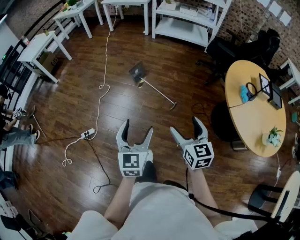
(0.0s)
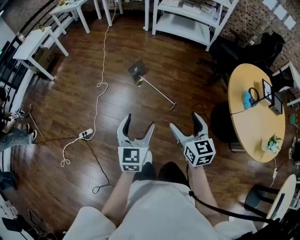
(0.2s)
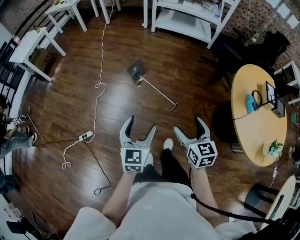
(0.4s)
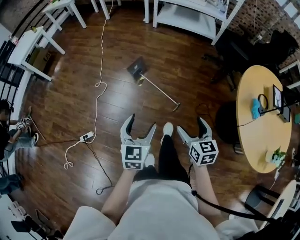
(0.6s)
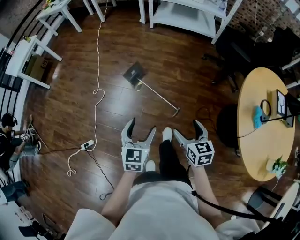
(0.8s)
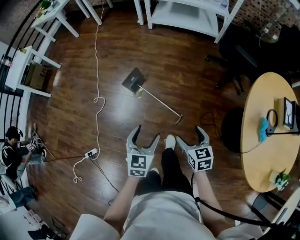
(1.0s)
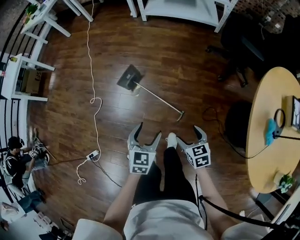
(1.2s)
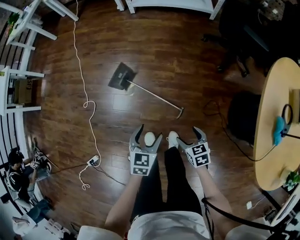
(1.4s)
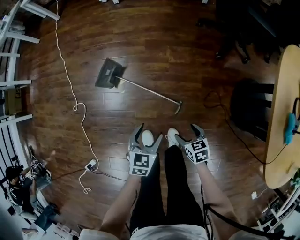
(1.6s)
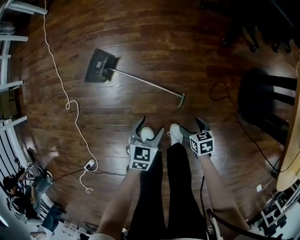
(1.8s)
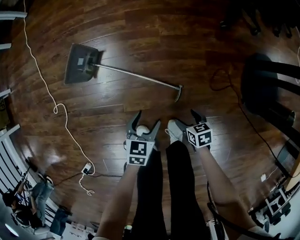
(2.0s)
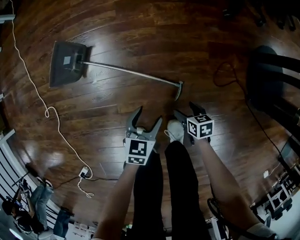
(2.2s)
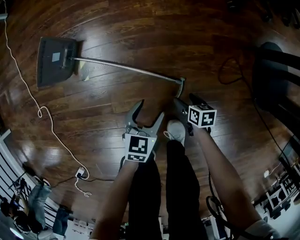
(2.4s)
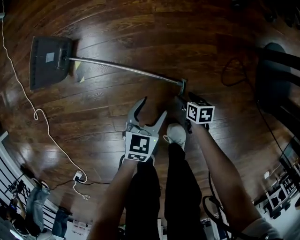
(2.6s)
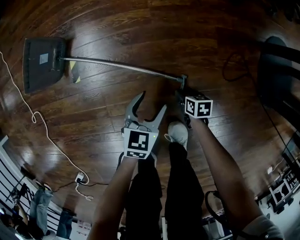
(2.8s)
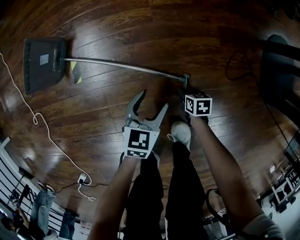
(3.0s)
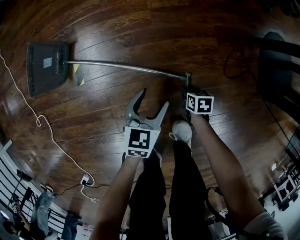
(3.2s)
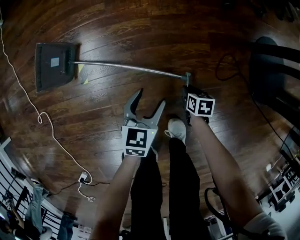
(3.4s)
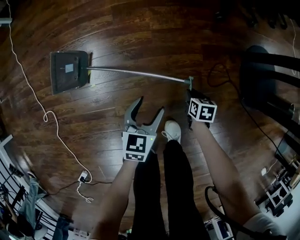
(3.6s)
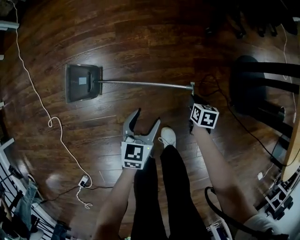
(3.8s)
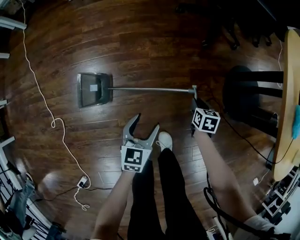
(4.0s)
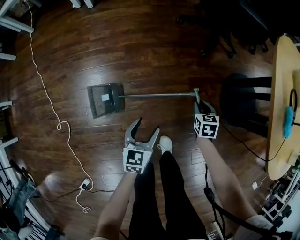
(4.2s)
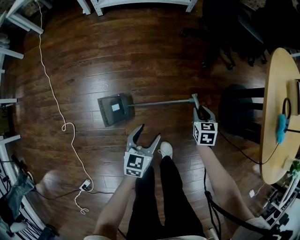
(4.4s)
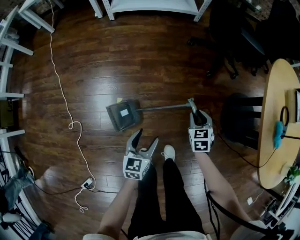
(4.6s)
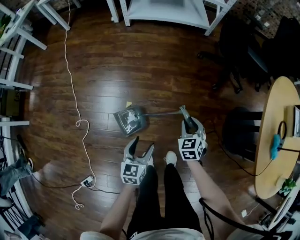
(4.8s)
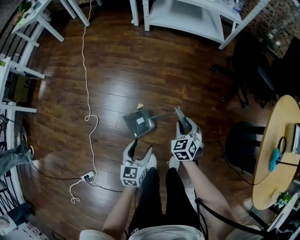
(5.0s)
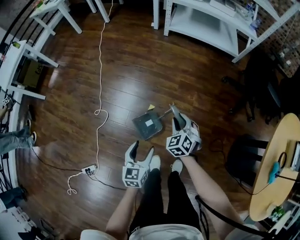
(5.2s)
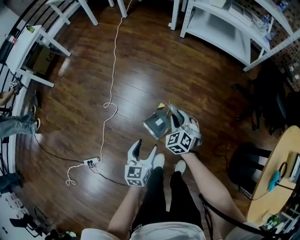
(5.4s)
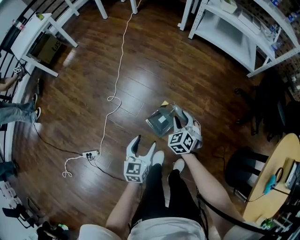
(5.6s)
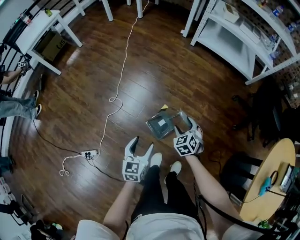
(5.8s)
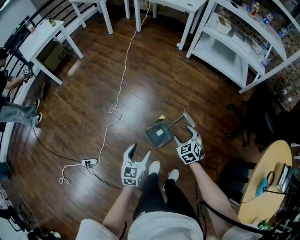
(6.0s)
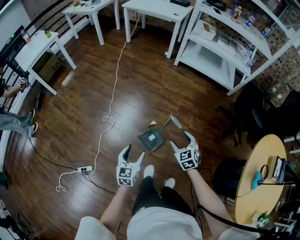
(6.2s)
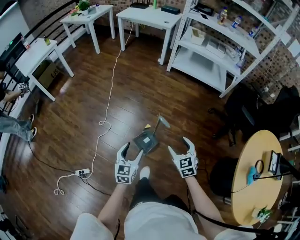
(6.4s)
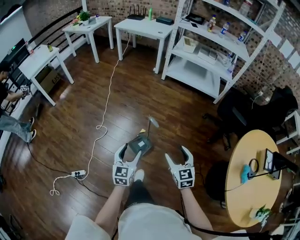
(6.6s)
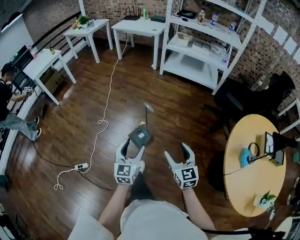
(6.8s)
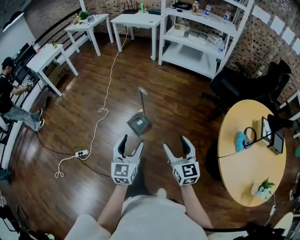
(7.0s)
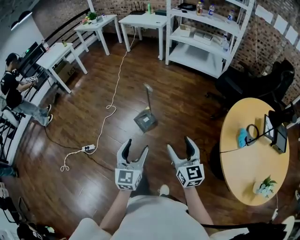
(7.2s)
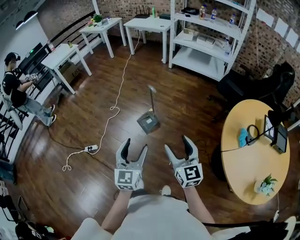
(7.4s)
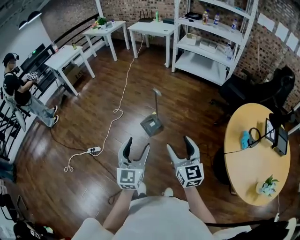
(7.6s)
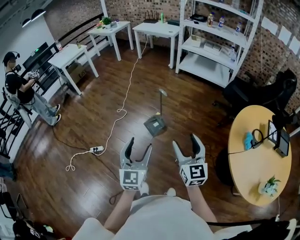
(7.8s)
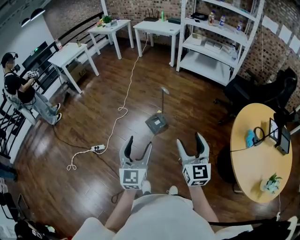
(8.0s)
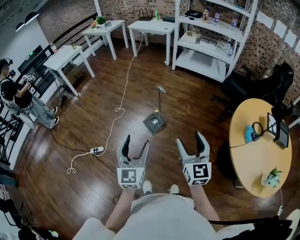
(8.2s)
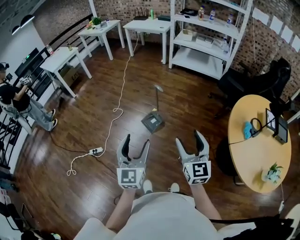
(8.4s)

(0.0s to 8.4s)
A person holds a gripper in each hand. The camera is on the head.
0.0s - 1.4s: The right gripper shifts some 50 cm downward and forward, and tilts its fingers approximately 30 degrees downward; the left gripper is displaced forward and downward by about 50 cm, and turns by approximately 30 degrees.
1.4s - 2.8s: Both grippers travel together downward, roughly 60 cm. The right gripper changes its angle by about 40 degrees; the left gripper changes its angle by roughly 20 degrees.
2.8s - 4.2s: The grippers both shift upward by approximately 40 cm. The right gripper rotates approximately 30 degrees, and closes.
4.2s - 5.6s: The right gripper changes place by about 50 cm, and twists about 60 degrees counterclockwise, seen from behind, while the left gripper moves roughly 40 cm, and changes its angle by some 40 degrees.
5.6s - 7.0s: Both grippers move backward, upward and to the right, roughly 50 cm. The right gripper points its fingers approximately 40 degrees further upward, while the left gripper turns by roughly 20 degrees.
7.0s - 8.4s: Both grippers travel together backward, upward and to the left, approximately 20 cm.

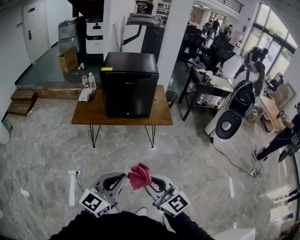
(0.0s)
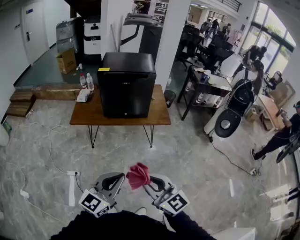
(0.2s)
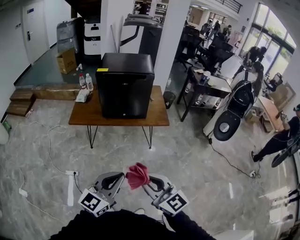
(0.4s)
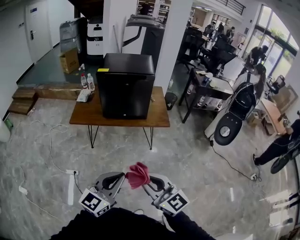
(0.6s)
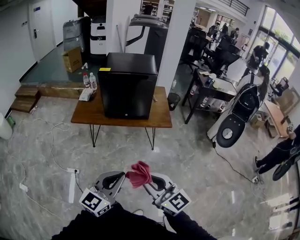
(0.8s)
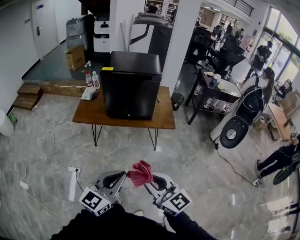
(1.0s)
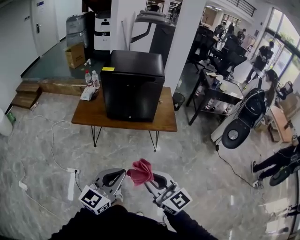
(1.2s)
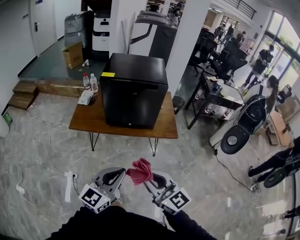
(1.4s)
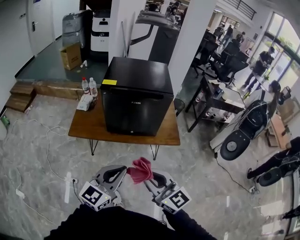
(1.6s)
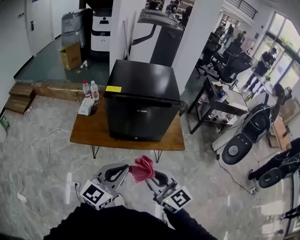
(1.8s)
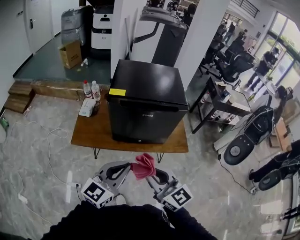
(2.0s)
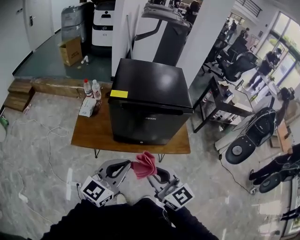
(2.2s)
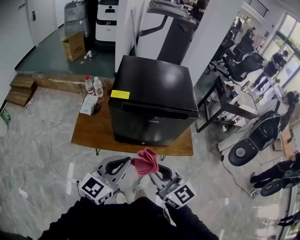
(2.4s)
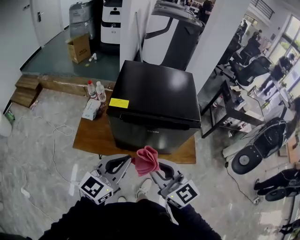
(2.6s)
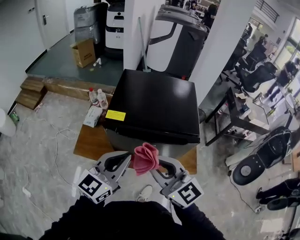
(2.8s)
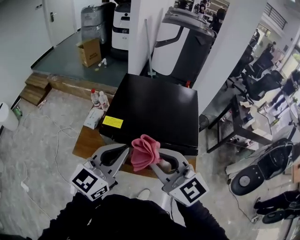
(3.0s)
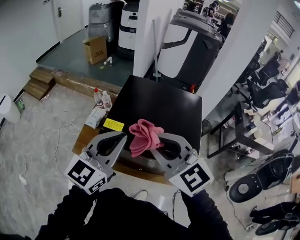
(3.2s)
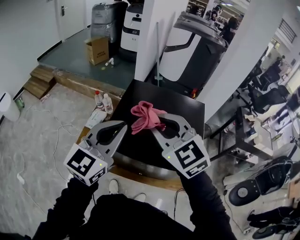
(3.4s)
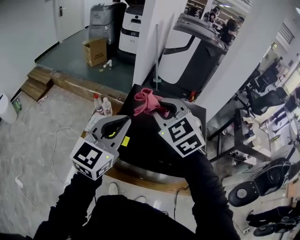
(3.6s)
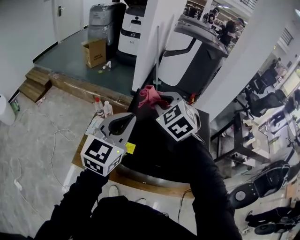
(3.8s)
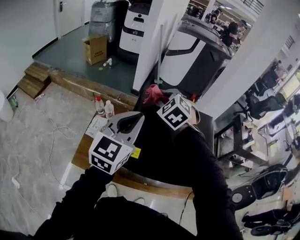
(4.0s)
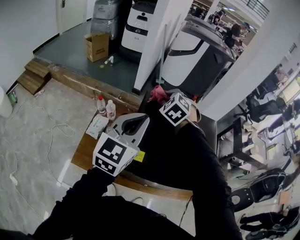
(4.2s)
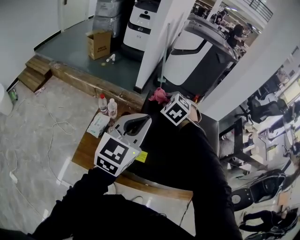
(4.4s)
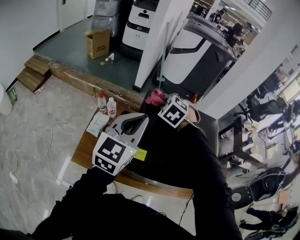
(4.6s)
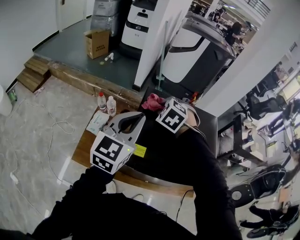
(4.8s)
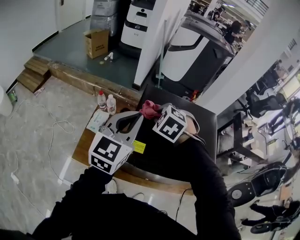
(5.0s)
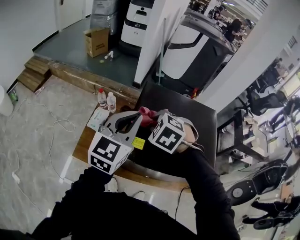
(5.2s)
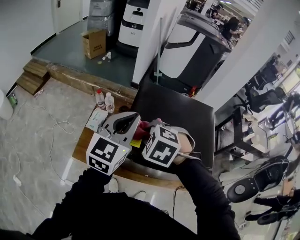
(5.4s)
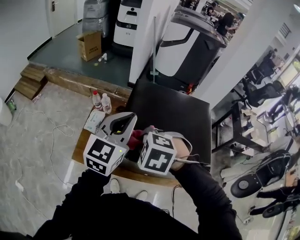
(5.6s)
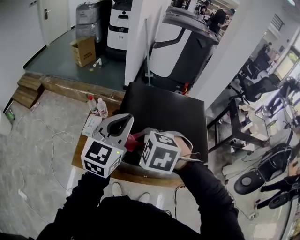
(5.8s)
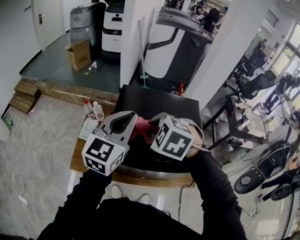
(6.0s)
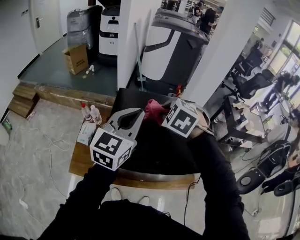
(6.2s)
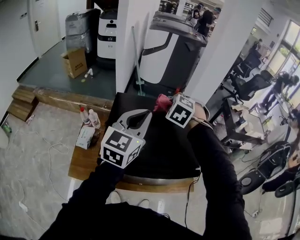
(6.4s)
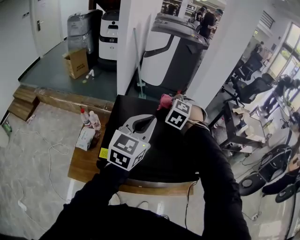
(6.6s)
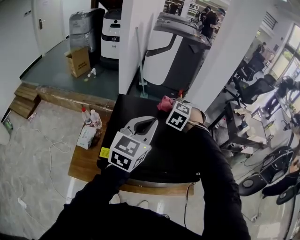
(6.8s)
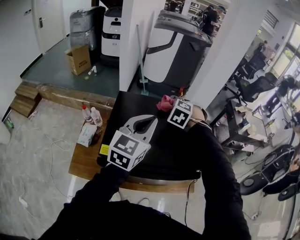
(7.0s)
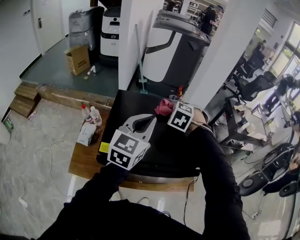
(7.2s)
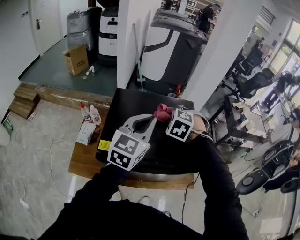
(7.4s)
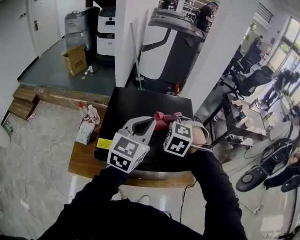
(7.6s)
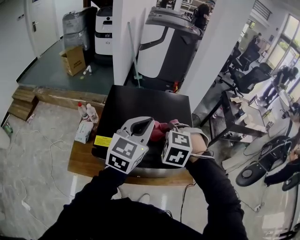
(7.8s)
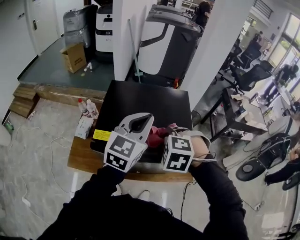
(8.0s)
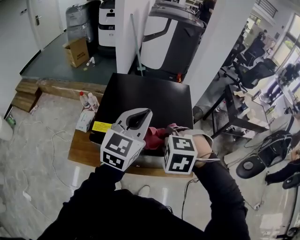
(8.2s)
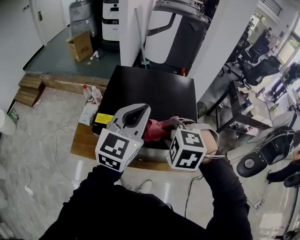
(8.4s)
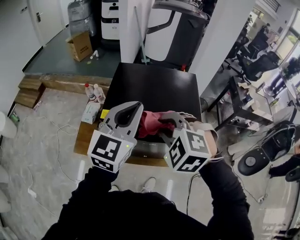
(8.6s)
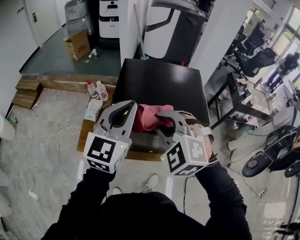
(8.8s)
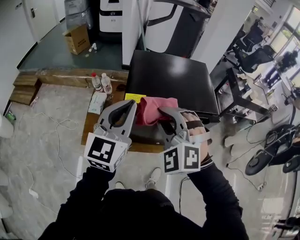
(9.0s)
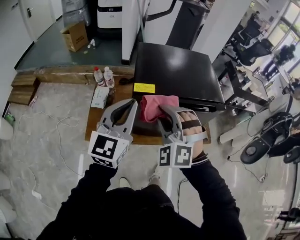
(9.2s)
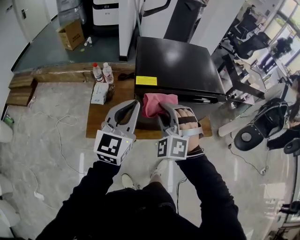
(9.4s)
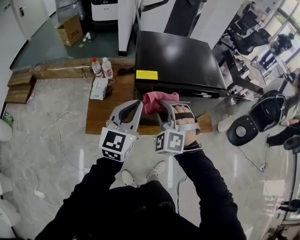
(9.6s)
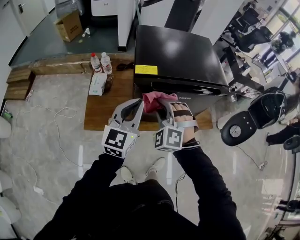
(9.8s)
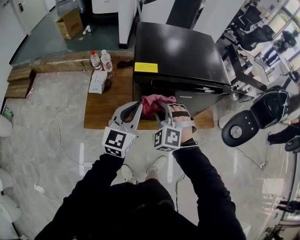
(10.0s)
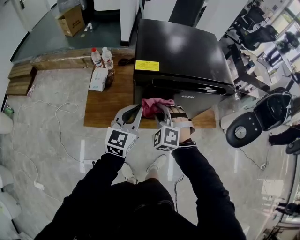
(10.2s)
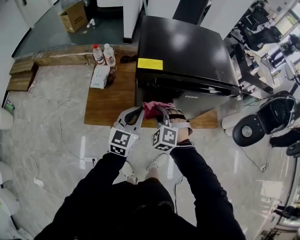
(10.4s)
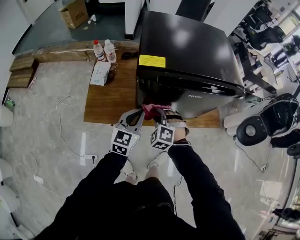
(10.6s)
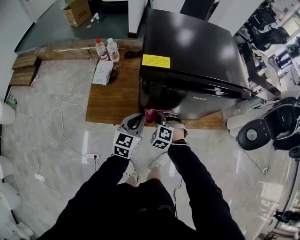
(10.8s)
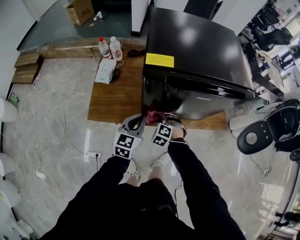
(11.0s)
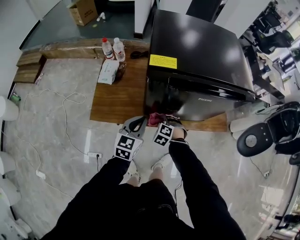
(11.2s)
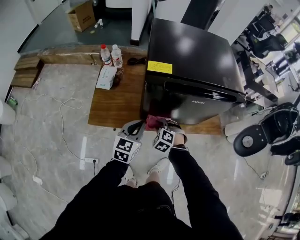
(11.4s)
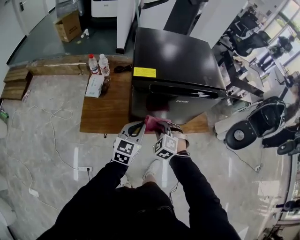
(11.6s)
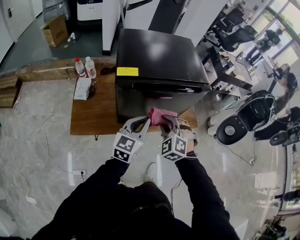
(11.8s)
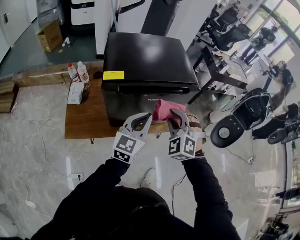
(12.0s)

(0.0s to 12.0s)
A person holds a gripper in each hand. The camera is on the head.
0.0s - 1.6s: Both grippers travel together forward, some 25 cm.
1.6s - 3.0s: Both grippers travel together forward, about 40 cm.
3.0s - 4.4s: The right gripper heads forward, covering some 40 cm, and tips its fingers downward by some 40 degrees; the left gripper is displaced forward and to the left by roughly 25 cm.
4.4s - 6.0s: The right gripper heads backward, covering approximately 25 cm, while the left gripper travels to the right by approximately 5 cm.
6.0s - 7.6s: The left gripper shifts some 10 cm to the right; the right gripper goes approximately 15 cm to the right and downward, and moves some 25 cm forward and comes back.
7.6s - 9.0s: The two grippers go about 25 cm backward and to the left. The right gripper points its fingers roughly 30 degrees further upward.
9.0s - 10.4s: Both grippers move downward, about 30 cm.
10.4s - 12.0s: Both grippers move to the right and upward, about 20 cm.

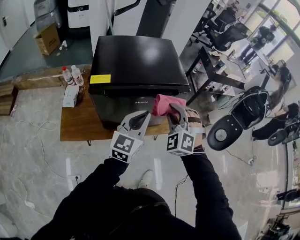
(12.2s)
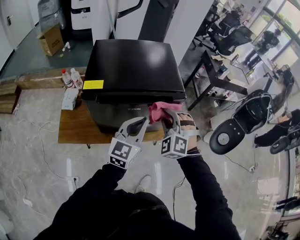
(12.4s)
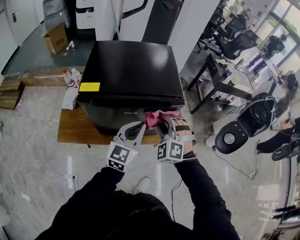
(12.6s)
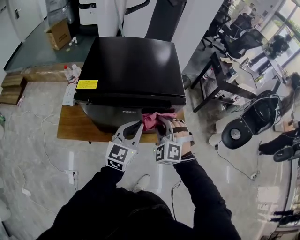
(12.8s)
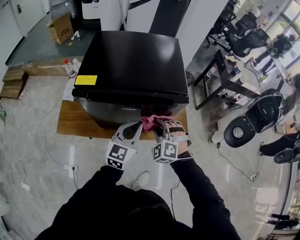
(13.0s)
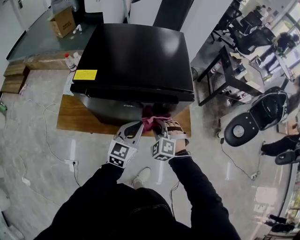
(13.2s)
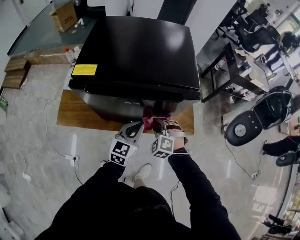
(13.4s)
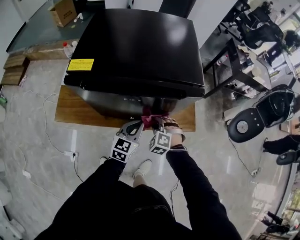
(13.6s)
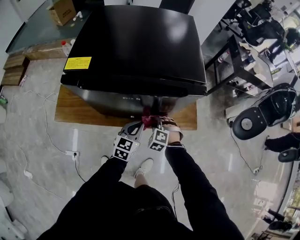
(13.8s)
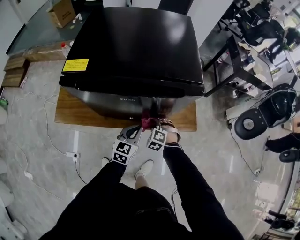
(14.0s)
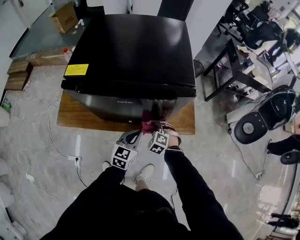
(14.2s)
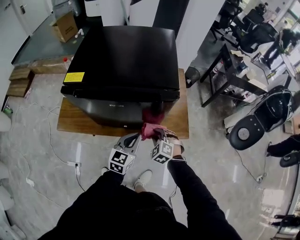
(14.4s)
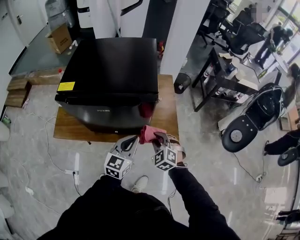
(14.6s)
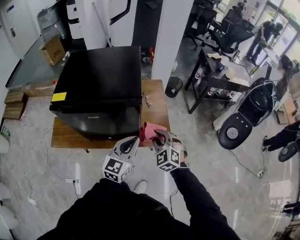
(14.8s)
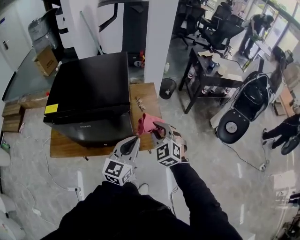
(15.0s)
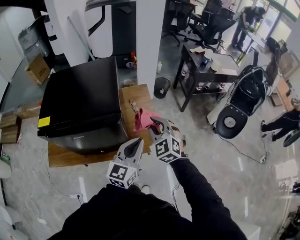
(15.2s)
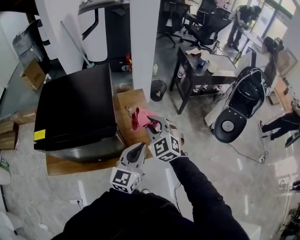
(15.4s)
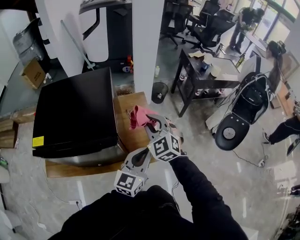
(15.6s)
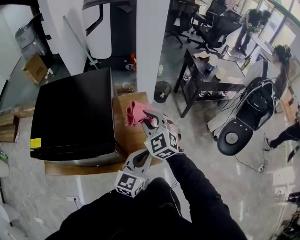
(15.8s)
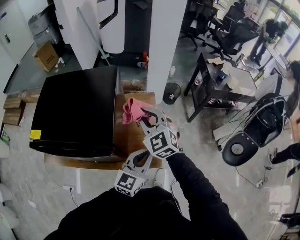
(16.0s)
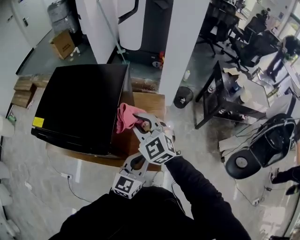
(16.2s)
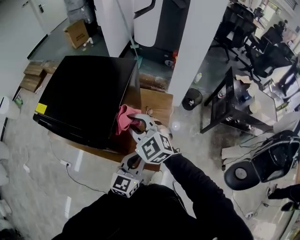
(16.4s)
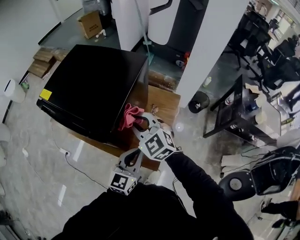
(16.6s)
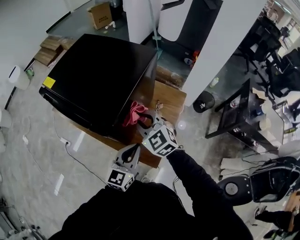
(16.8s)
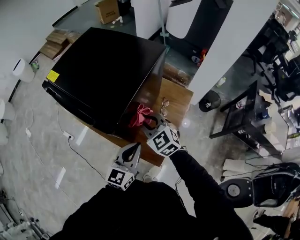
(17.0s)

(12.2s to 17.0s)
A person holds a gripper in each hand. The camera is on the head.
12.2s - 13.8s: Both grippers move downward, approximately 35 cm. The left gripper swivels about 30 degrees, while the right gripper tilts its fingers roughly 30 degrees downward.
13.8s - 15.4s: The left gripper travels to the right and upward by some 40 cm, and changes its angle by roughly 20 degrees; the right gripper goes about 40 cm upward and to the right, and angles its fingers upward, by approximately 40 degrees.
15.4s - 17.0s: The right gripper ends up roughly 15 cm from where it was, and changes its angle by some 50 degrees. The left gripper is displaced downward by approximately 10 cm, and swivels some 40 degrees.
